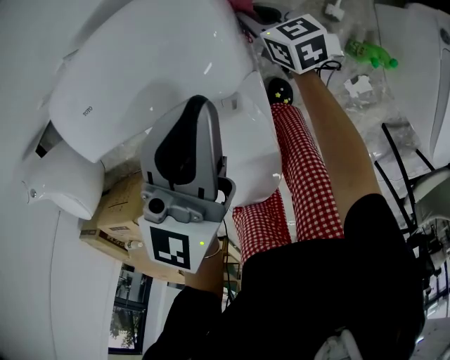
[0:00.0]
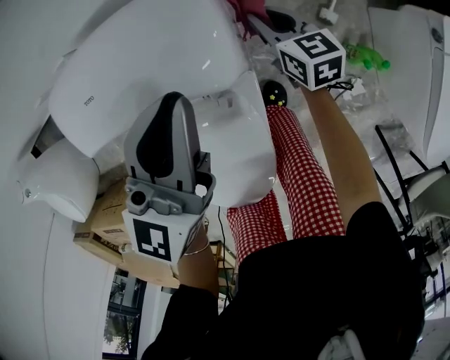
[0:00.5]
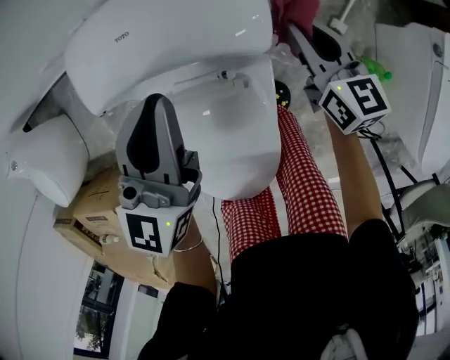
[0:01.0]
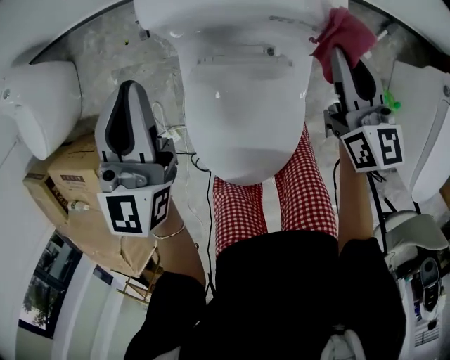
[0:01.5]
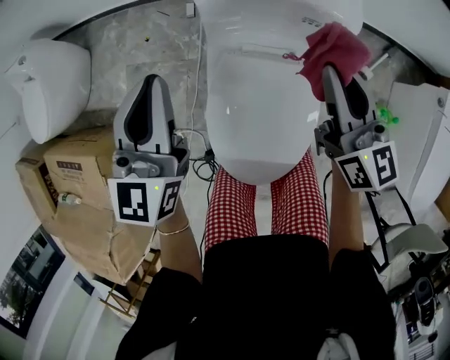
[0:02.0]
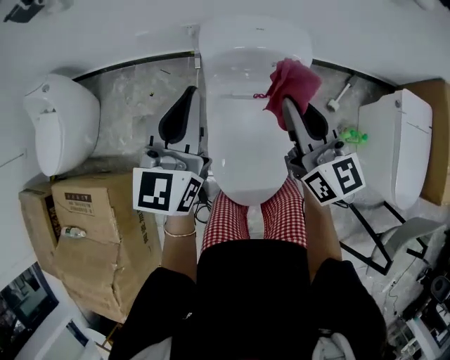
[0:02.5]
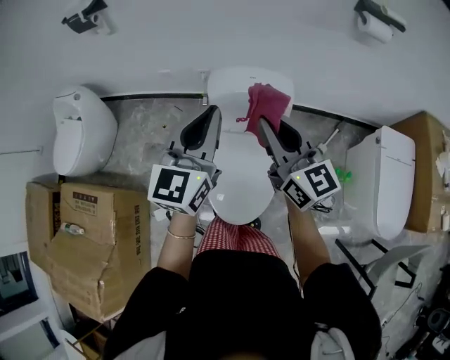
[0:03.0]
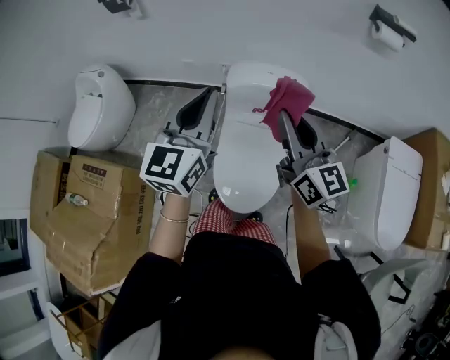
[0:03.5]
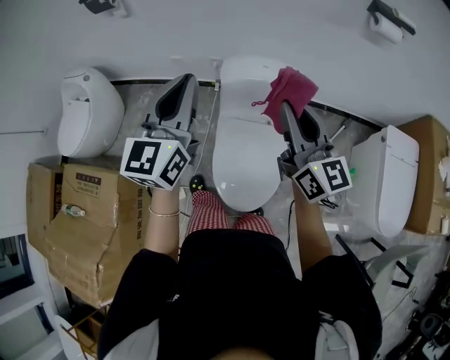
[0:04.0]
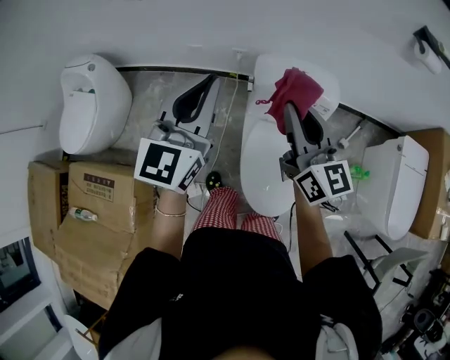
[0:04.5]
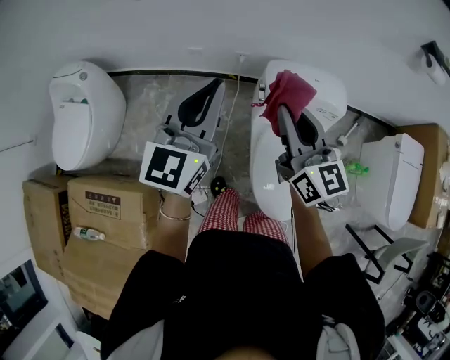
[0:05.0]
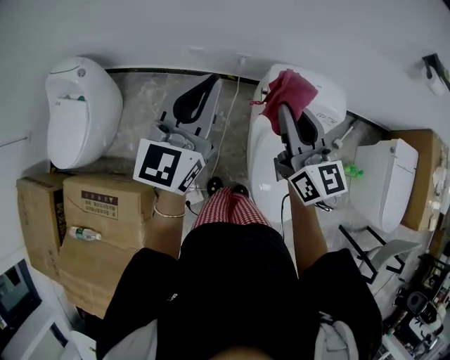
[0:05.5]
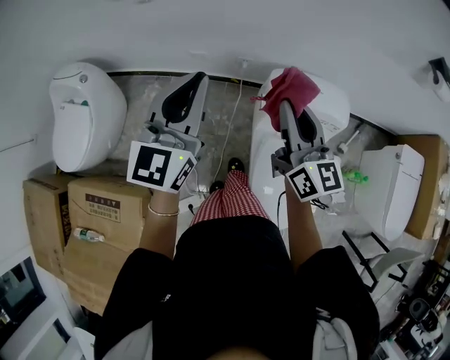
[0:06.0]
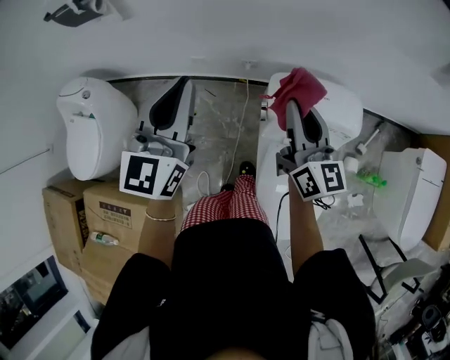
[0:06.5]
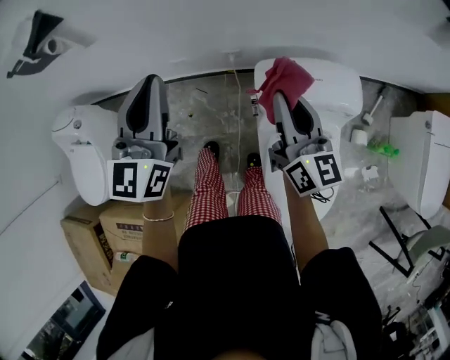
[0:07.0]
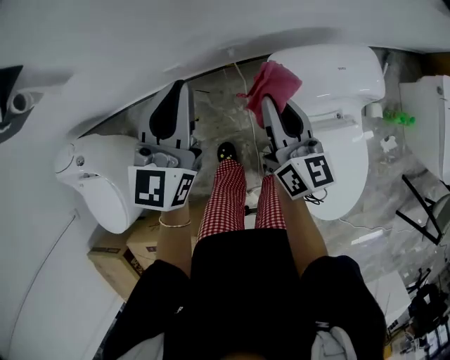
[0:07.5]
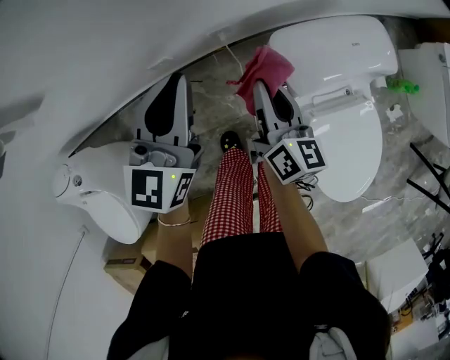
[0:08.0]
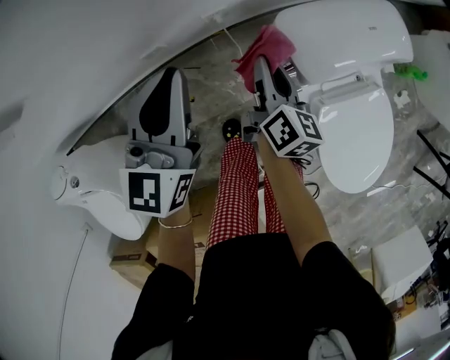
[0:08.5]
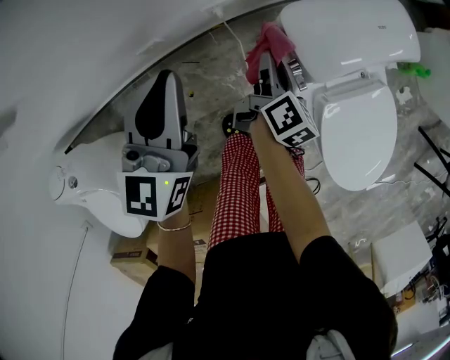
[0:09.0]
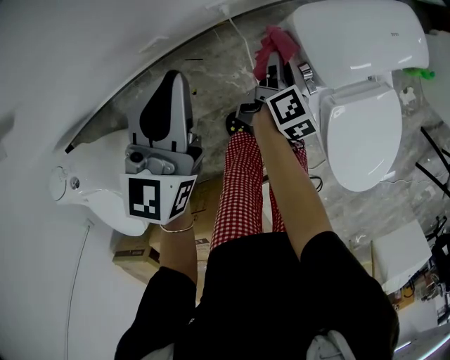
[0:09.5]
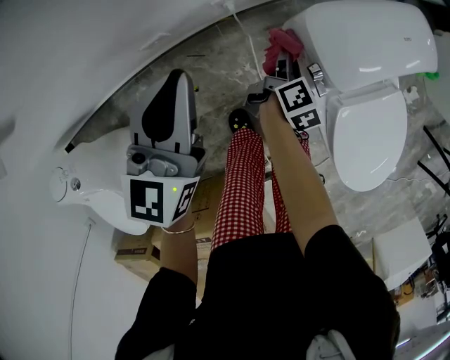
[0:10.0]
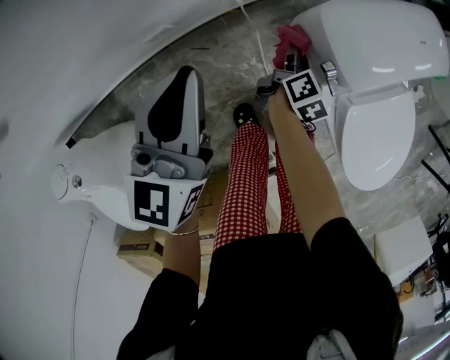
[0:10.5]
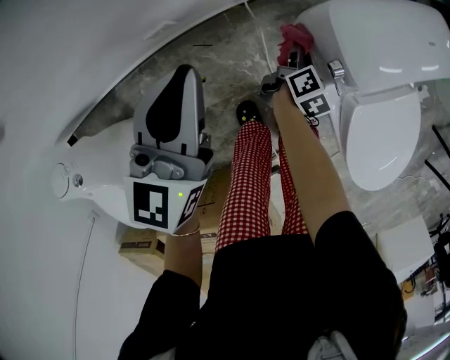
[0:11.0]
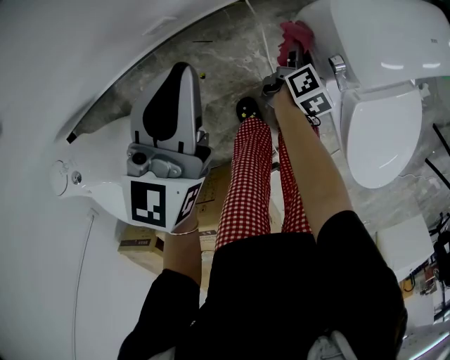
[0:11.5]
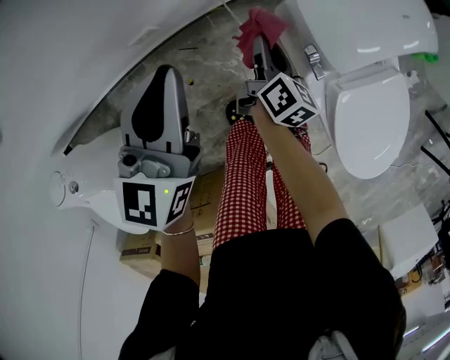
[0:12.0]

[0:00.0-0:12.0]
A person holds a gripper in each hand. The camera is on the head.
0:00.0 to 0:02.0: The right gripper heads upward, backward and to the left, covering approximately 40 cm, and tips its fingers upward by roughly 30 degrees. The left gripper heads to the left and backward, covering roughly 40 cm, and turns by some 30 degrees.
0:02.0 to 0:04.0: The left gripper goes some 25 cm upward, while the right gripper heads upward and backward, covering some 30 cm.
0:04.0 to 0:06.0: Both grippers move to the left and forward, roughly 30 cm.
0:06.0 to 0:08.0: The left gripper shifts by about 30 cm, and changes its angle by about 30 degrees. The right gripper shifts about 25 cm downward, and turns by roughly 40 degrees.
0:08.0 to 0:10.0: The right gripper moves downward, about 20 cm, and rotates roughly 50 degrees, while the left gripper shifts about 10 cm downward.
0:10.0 to 0:12.0: The right gripper moves approximately 5 cm downward and comes back, and rotates some 20 degrees.

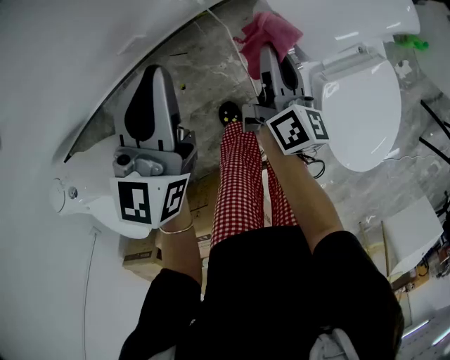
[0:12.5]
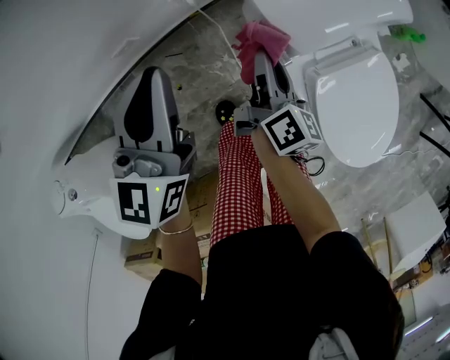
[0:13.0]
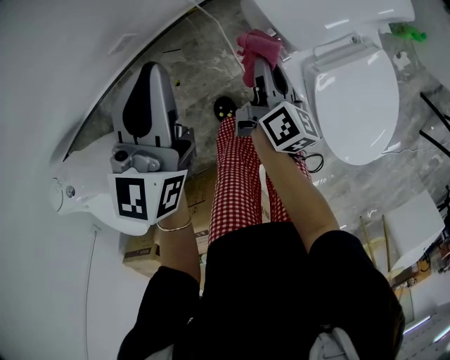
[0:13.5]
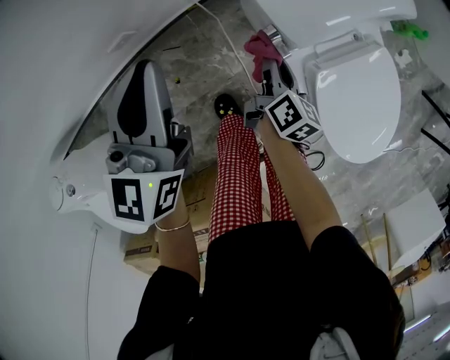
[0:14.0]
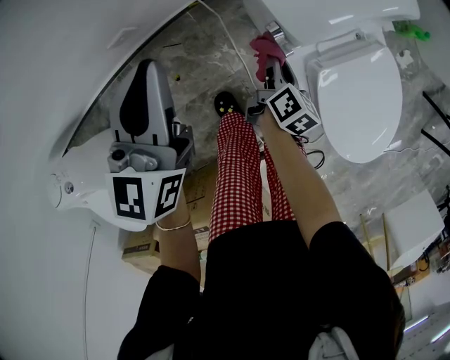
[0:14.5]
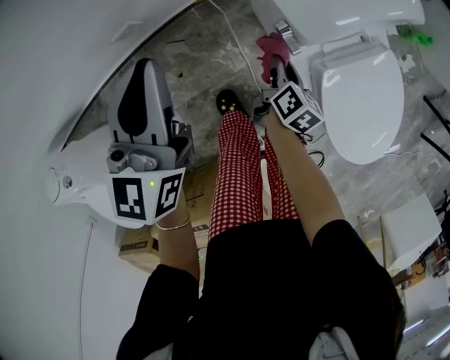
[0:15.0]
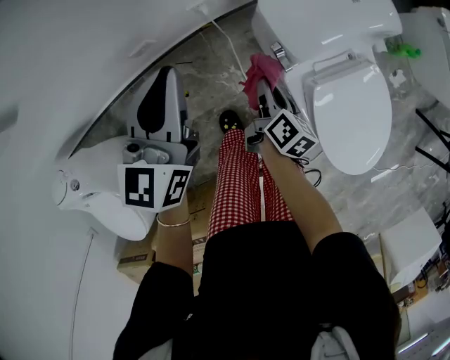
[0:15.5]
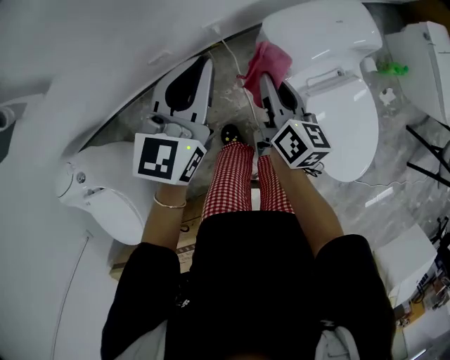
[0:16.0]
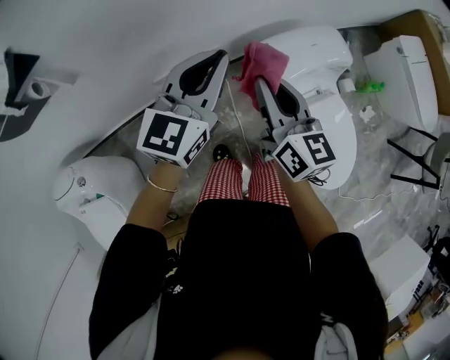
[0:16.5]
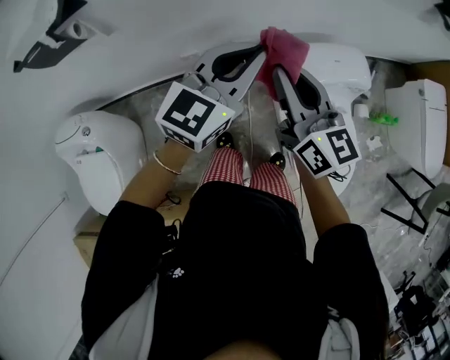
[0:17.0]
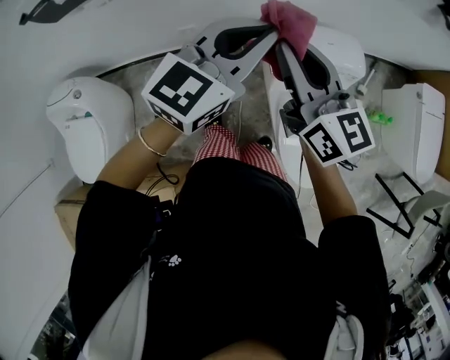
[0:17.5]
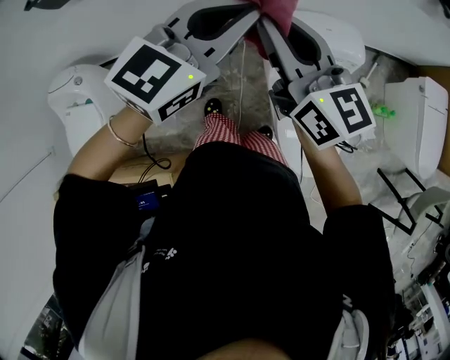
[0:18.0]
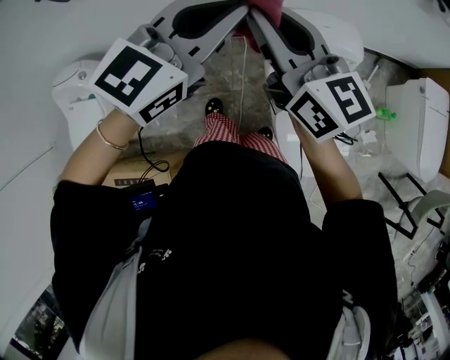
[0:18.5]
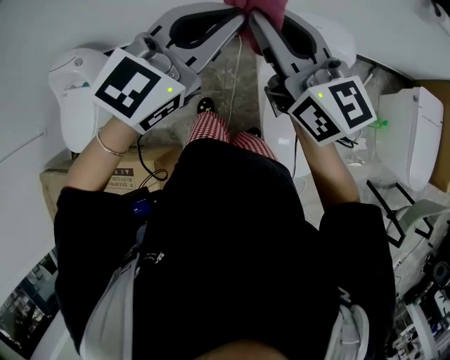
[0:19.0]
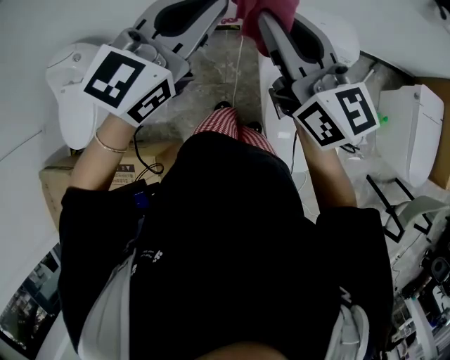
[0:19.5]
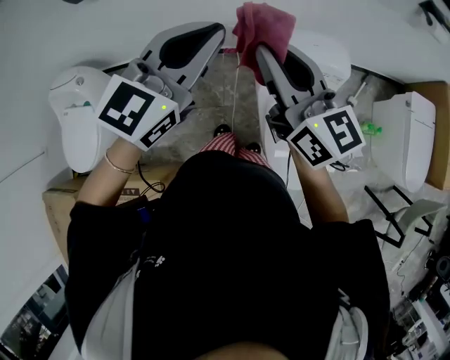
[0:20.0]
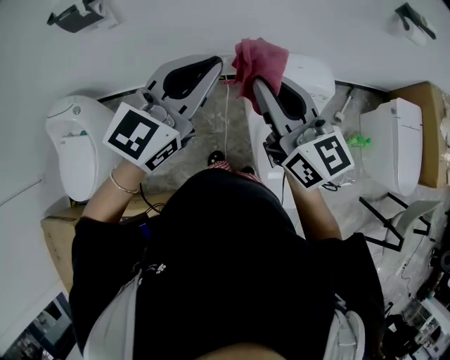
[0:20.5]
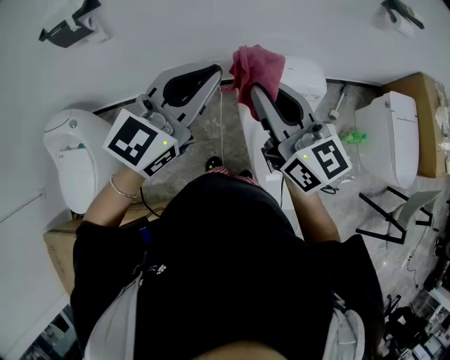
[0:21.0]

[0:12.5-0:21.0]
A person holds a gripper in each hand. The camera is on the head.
0:12.5 to 0:14.5: The right gripper heads downward, to the right and backward, covering some 15 cm, and swivels some 20 degrees.
0:14.5 to 0:16.5: The right gripper goes roughly 40 cm upward, and points its fingers roughly 30 degrees further upward; the left gripper heads upward, covering roughly 20 cm, and turns by roughly 20 degrees.
0:16.5 to 0:19.0: The right gripper shifts roughly 20 cm upward and backward, and turns by approximately 40 degrees. The left gripper shifts about 25 cm backward, upward and to the right.
0:19.0 to 0:21.0: The left gripper changes place by some 5 cm.

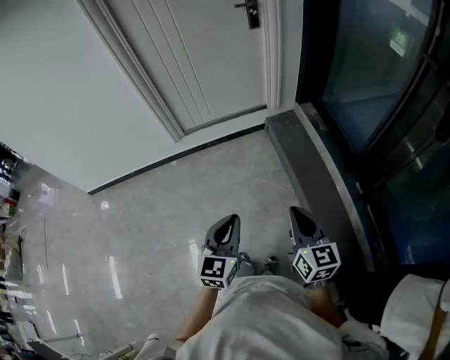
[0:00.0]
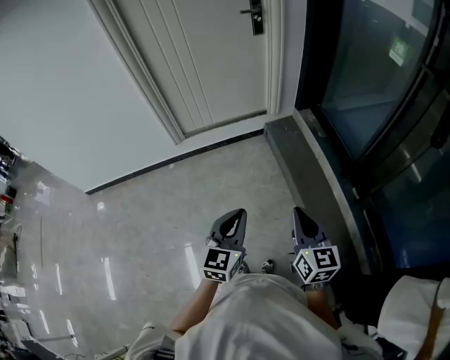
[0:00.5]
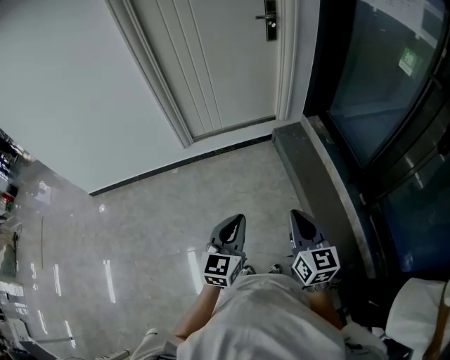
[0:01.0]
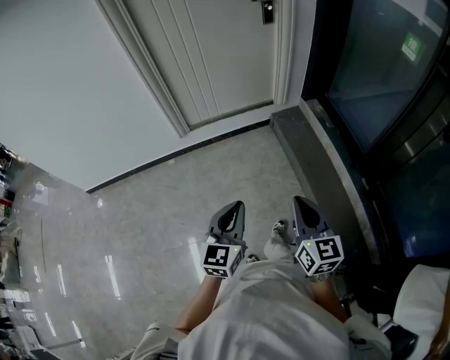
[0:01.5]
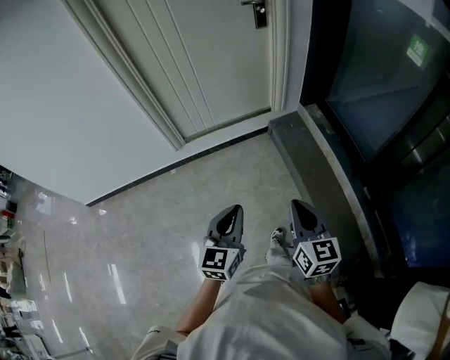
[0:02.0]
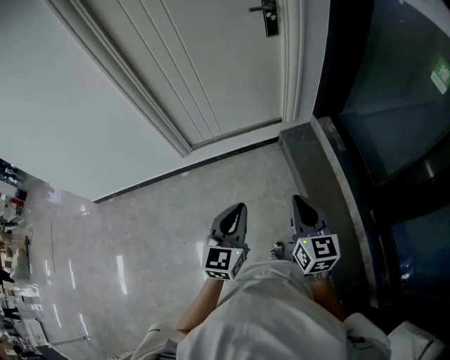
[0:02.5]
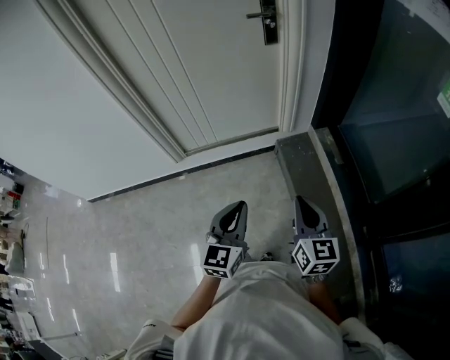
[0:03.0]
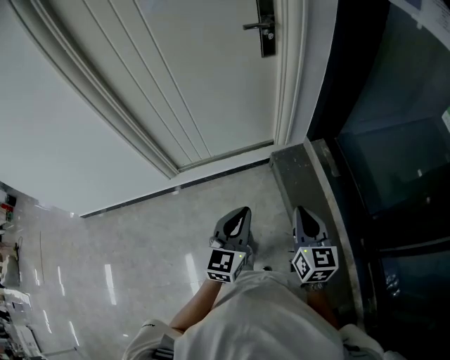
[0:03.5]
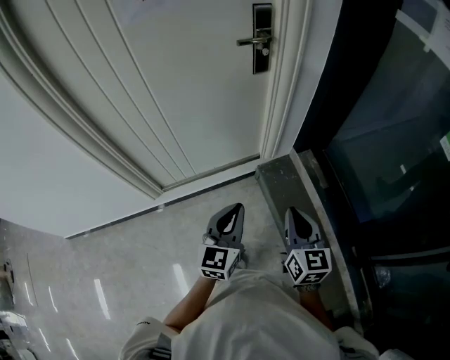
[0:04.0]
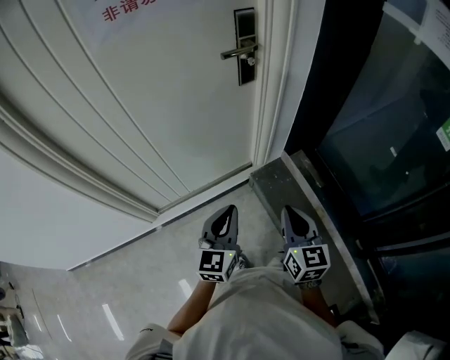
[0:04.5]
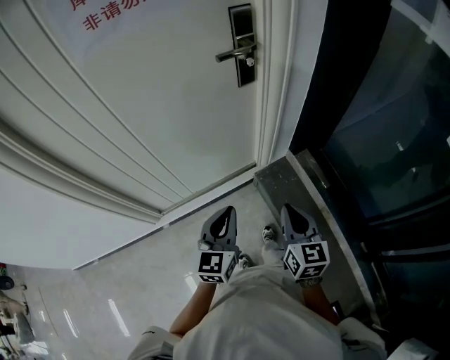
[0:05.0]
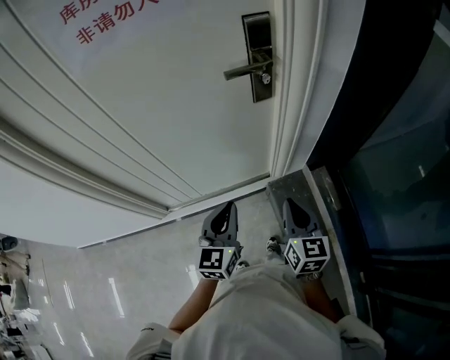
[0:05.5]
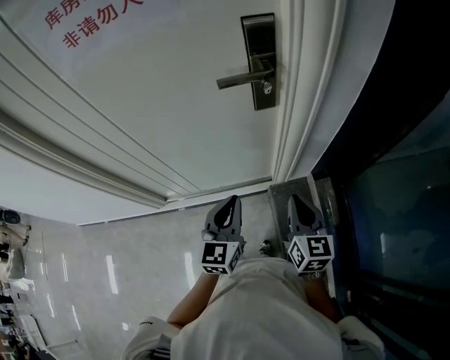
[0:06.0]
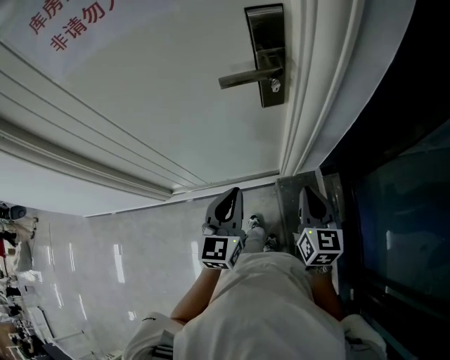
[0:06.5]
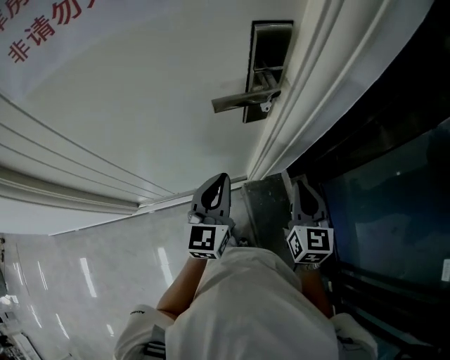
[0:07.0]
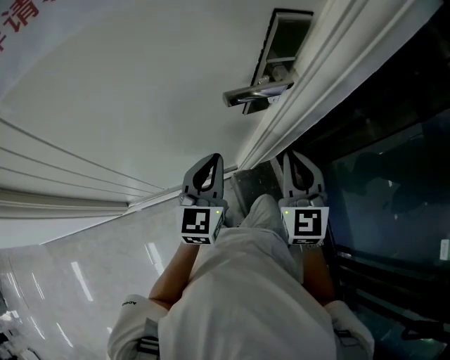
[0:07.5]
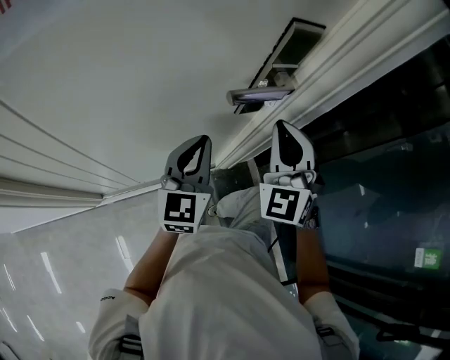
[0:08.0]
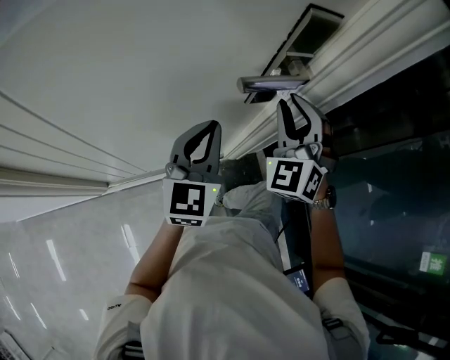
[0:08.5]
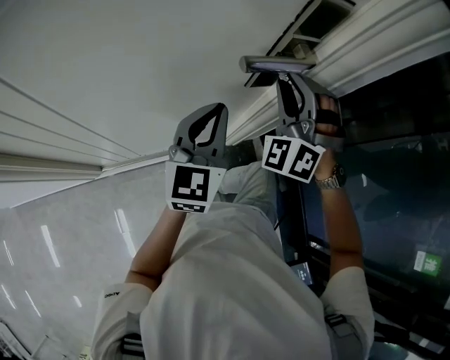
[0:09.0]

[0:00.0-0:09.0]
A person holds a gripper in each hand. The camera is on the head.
0:00.0 to 0:02.0: Both grippers move forward and to the left, approximately 15 cm.
0:02.0 to 0:04.5: The two grippers travel together, forward, some 50 cm.
0:04.5 to 0:07.0: Both grippers move forward, some 35 cm.
0:07.0 to 0:09.0: The left gripper shifts about 5 cm forward; the right gripper travels forward, to the left and upward by approximately 20 cm, rotates around the line of its fingers by roughly 80 degrees, counterclockwise from behind, and opens its fingers.
